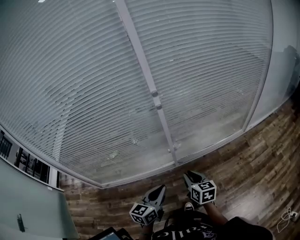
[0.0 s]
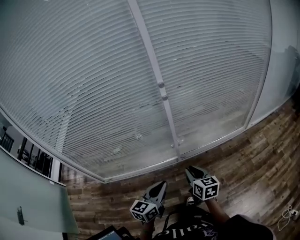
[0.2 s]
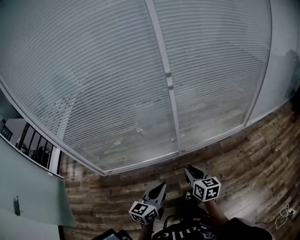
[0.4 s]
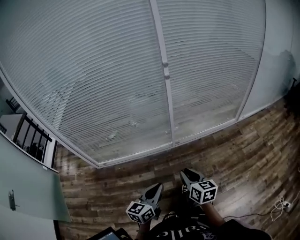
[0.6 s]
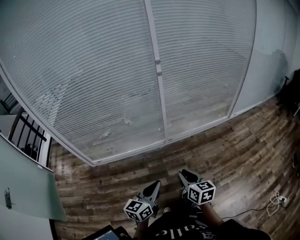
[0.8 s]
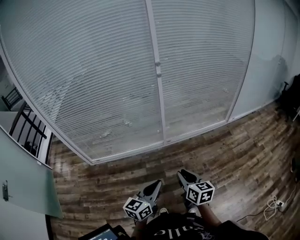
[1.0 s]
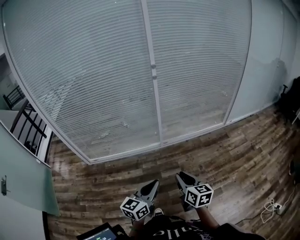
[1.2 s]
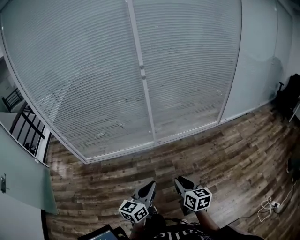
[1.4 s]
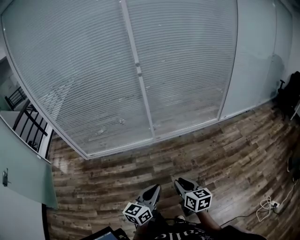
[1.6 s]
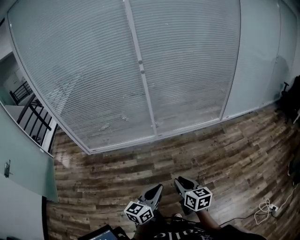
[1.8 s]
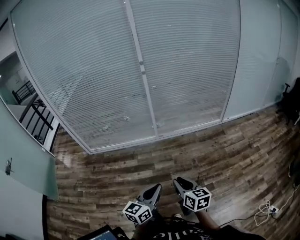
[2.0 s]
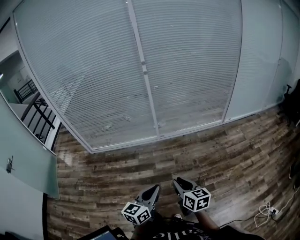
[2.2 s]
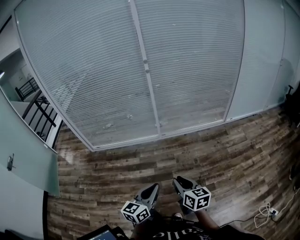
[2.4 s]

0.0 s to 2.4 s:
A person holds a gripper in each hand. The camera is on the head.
0.0 to 1.2 s: The grippers both shift backward by some 40 cm.
1.2 to 2.4 s: The two grippers go approximately 20 cm backward and to the right.

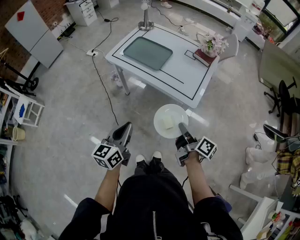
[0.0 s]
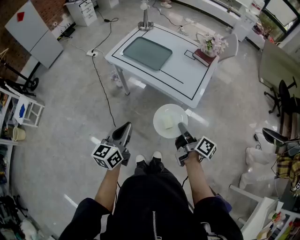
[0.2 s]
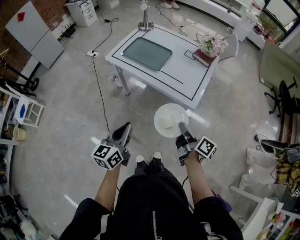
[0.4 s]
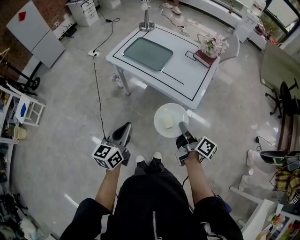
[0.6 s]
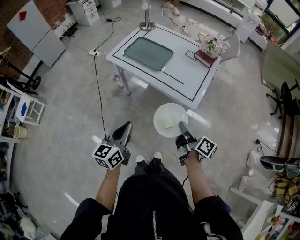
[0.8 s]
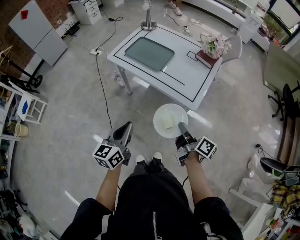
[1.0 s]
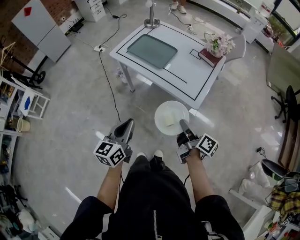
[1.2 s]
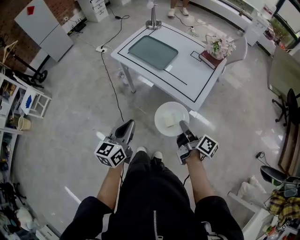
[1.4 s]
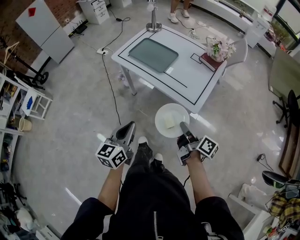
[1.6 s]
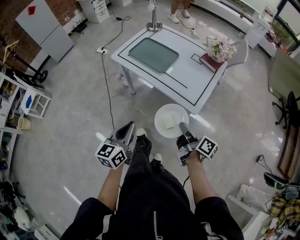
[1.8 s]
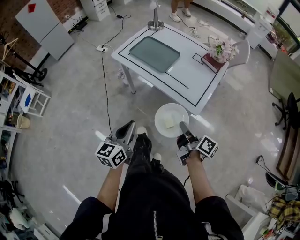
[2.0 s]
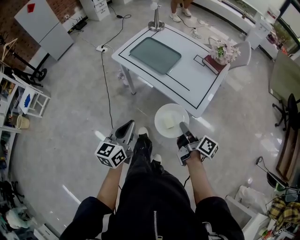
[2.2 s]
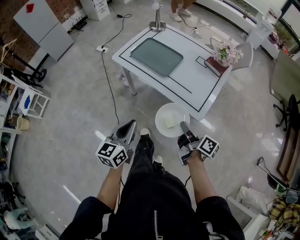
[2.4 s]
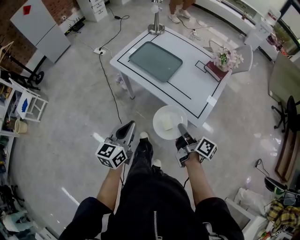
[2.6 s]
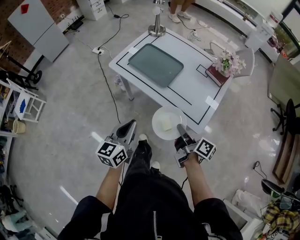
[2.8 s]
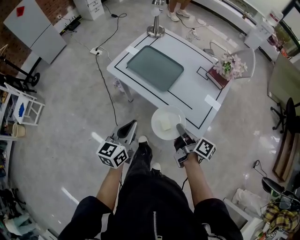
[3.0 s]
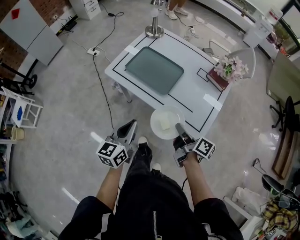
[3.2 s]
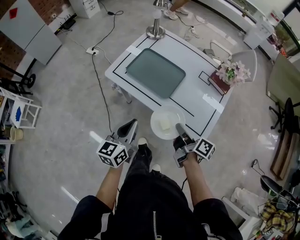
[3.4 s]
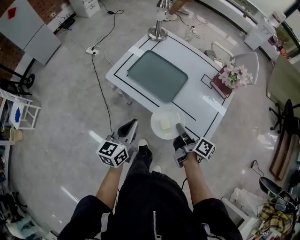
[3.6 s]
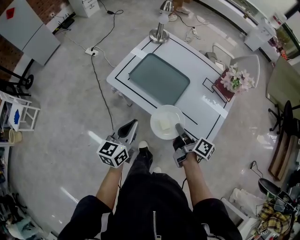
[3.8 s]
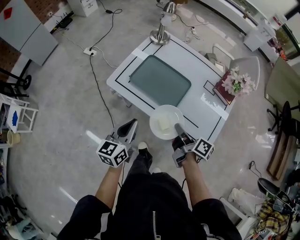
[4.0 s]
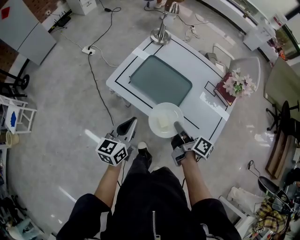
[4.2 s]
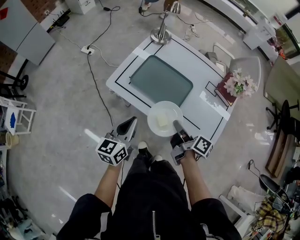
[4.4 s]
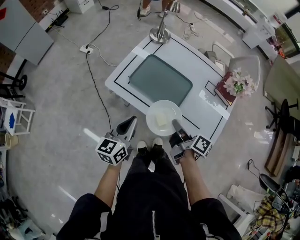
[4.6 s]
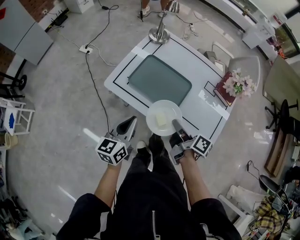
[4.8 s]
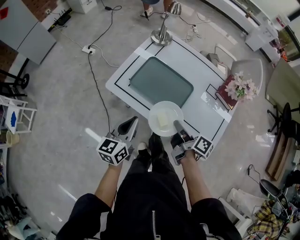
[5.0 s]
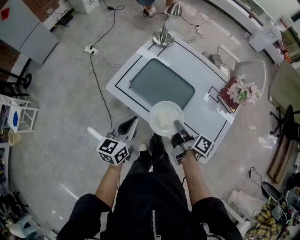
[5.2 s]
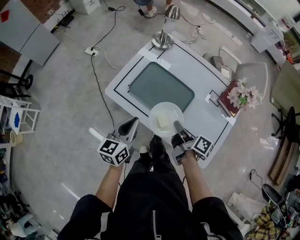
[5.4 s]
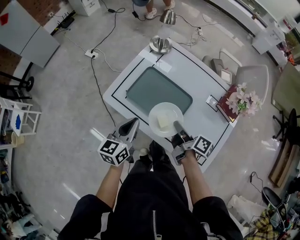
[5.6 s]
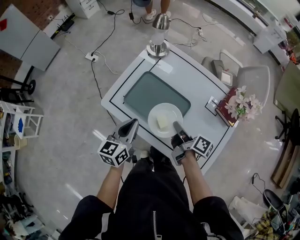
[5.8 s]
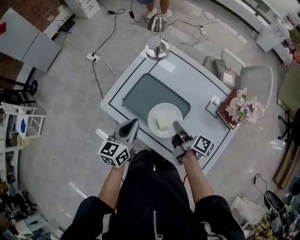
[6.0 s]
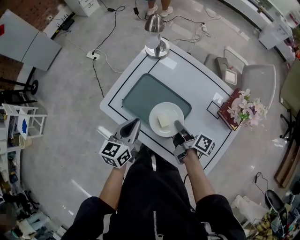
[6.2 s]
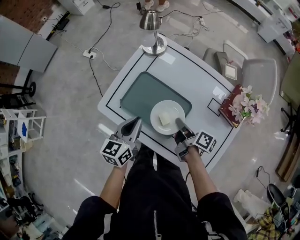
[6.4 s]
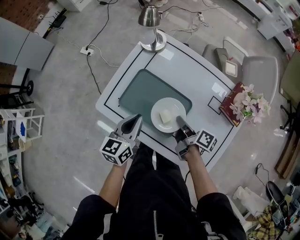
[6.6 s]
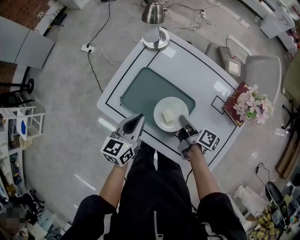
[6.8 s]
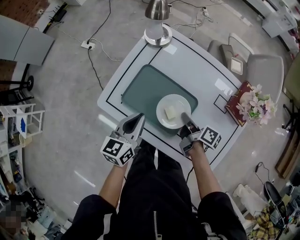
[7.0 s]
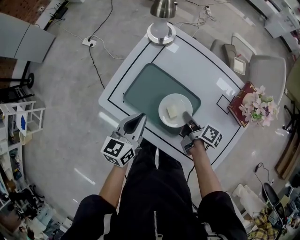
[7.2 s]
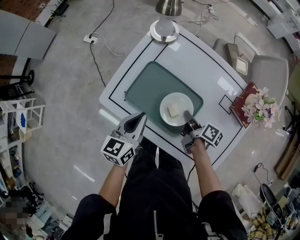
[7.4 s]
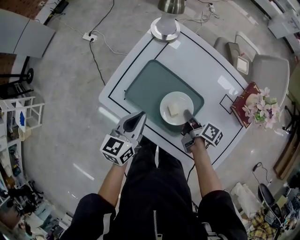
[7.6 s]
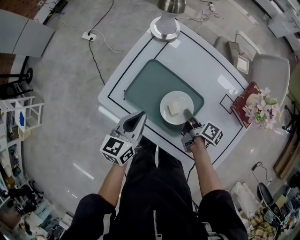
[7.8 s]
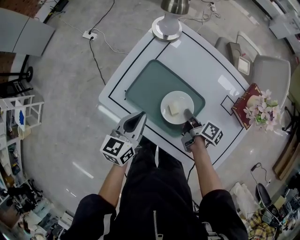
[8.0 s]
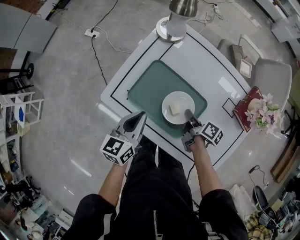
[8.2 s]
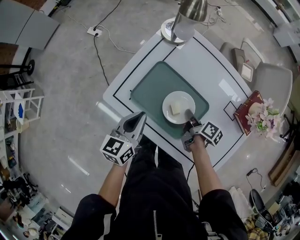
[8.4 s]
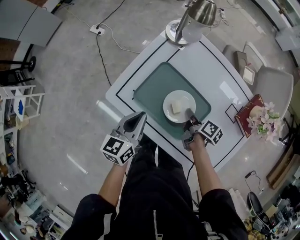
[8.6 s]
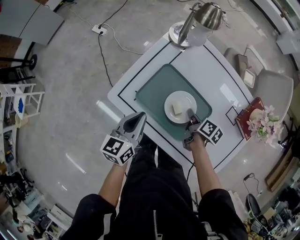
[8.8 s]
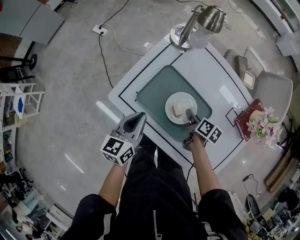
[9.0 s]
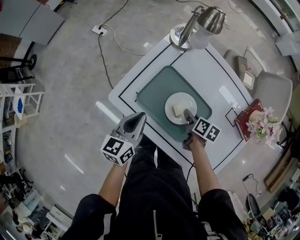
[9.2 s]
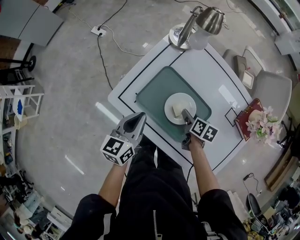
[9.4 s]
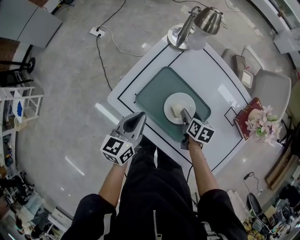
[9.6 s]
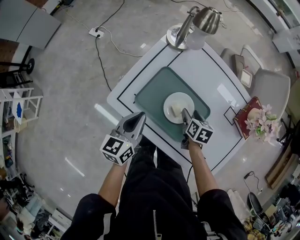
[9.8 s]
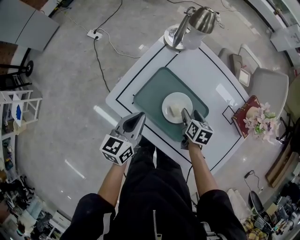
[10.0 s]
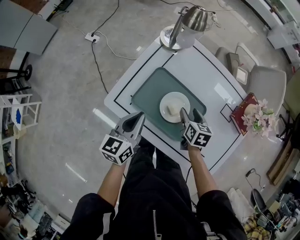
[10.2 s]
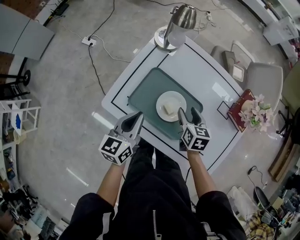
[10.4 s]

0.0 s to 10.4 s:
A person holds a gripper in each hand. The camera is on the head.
0.0 to 1.4 s: There are only small adjustments of the grippers.
1.4 to 3.0 s: Both grippers move forward, about 20 cm.
3.0 to 4.4 s: The two grippers go roughly 20 cm forward and to the left.
4.4 to 6.0 s: The left gripper goes approximately 15 cm forward and to the right. Meanwhile the right gripper moves forward, some 15 cm.
6.0 to 7.4 s: The right gripper goes approximately 10 cm downward. The left gripper shifts by roughly 5 cm.
7.4 to 9.0 s: The right gripper shifts by roughly 5 cm, changes its angle by about 20 degrees, and opens its fingers, while the left gripper travels to the left by approximately 5 cm.
9.0 to 10.4 s: The right gripper heads upward, covering about 10 cm, swivels about 40 degrees, and opens its fingers.

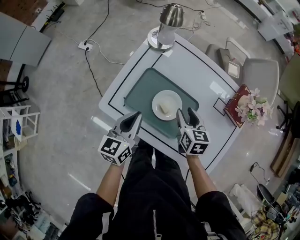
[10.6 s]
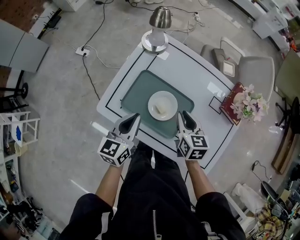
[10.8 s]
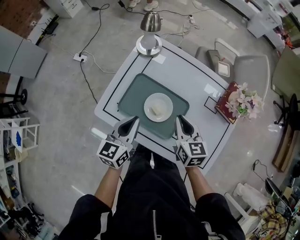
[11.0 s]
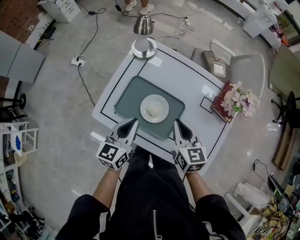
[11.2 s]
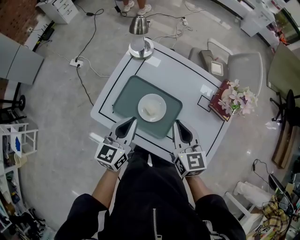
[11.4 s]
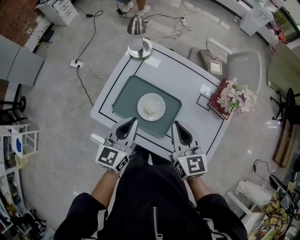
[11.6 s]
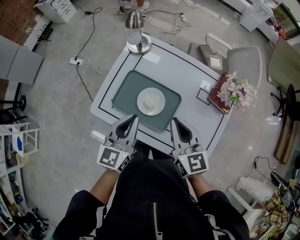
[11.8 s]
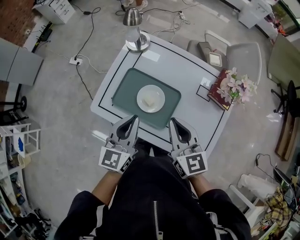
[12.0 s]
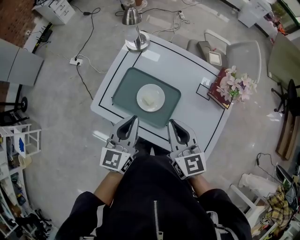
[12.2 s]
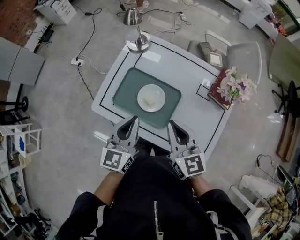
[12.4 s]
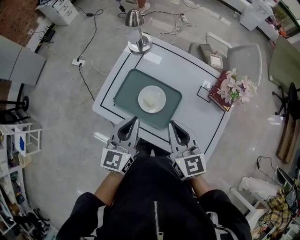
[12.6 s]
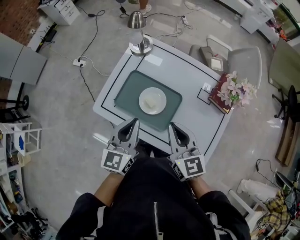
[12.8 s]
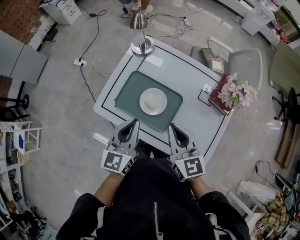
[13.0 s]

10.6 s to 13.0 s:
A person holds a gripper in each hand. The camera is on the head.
10.6 to 11.8 s: The left gripper heads upward and to the right, covering approximately 10 cm, while the right gripper shifts some 20 cm upward and backward, turns by roughly 20 degrees, and closes its fingers.
11.8 to 13.0 s: There are only small adjustments of the grippers.

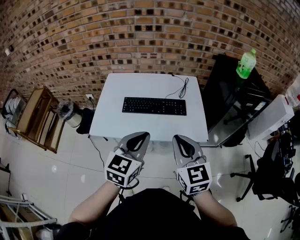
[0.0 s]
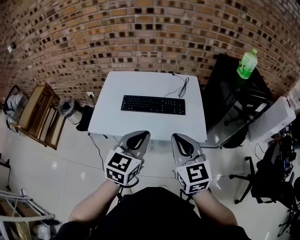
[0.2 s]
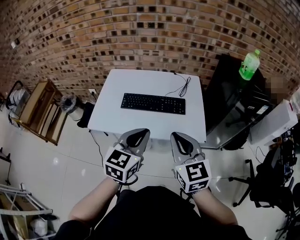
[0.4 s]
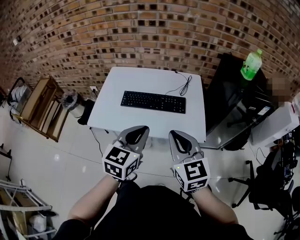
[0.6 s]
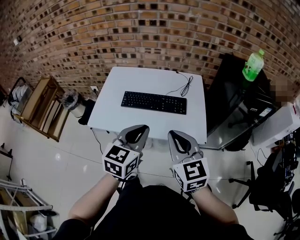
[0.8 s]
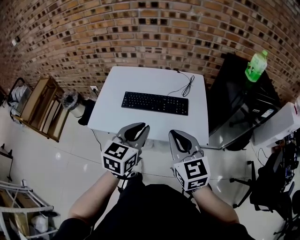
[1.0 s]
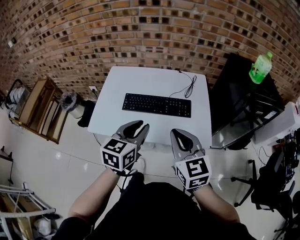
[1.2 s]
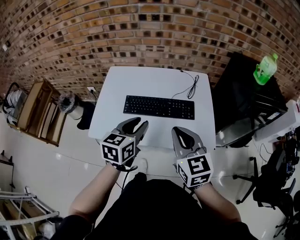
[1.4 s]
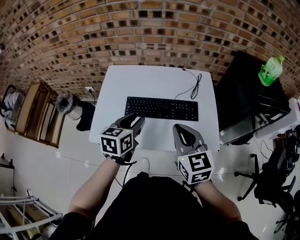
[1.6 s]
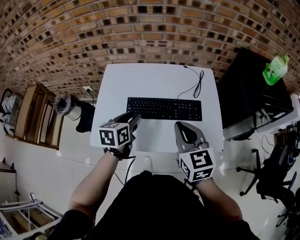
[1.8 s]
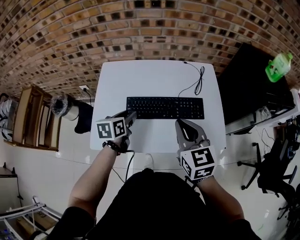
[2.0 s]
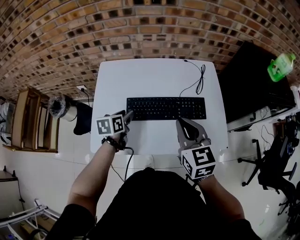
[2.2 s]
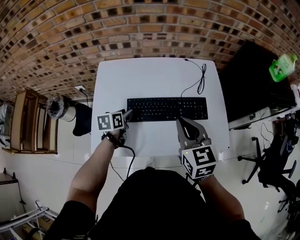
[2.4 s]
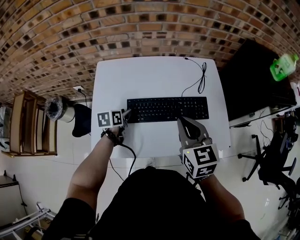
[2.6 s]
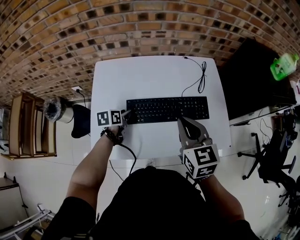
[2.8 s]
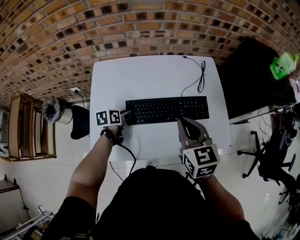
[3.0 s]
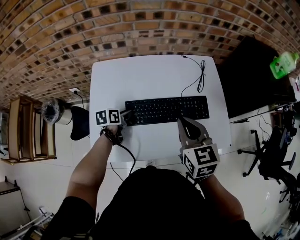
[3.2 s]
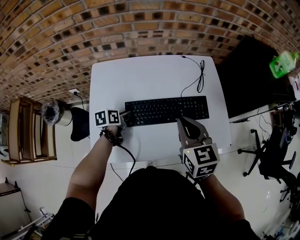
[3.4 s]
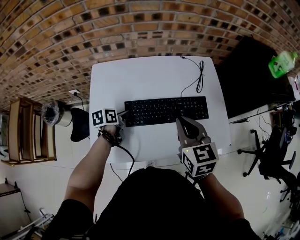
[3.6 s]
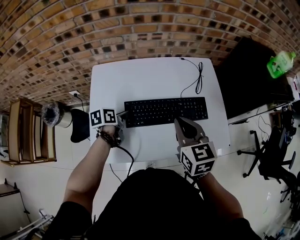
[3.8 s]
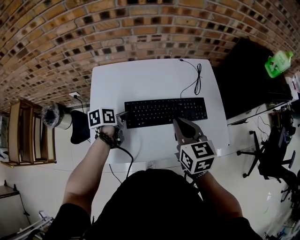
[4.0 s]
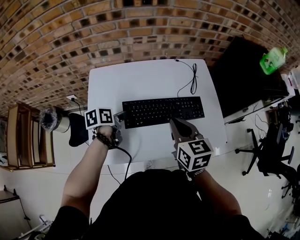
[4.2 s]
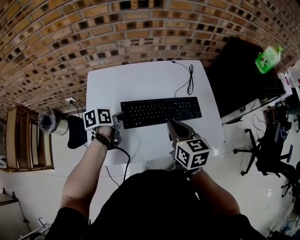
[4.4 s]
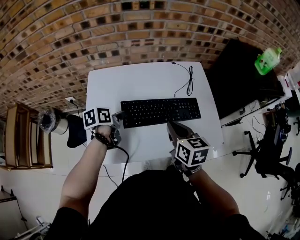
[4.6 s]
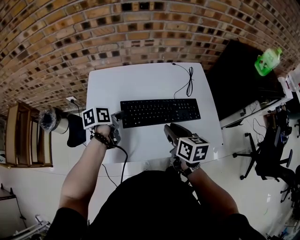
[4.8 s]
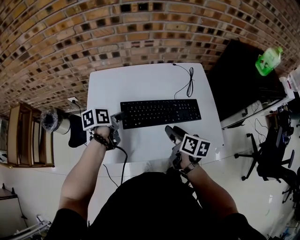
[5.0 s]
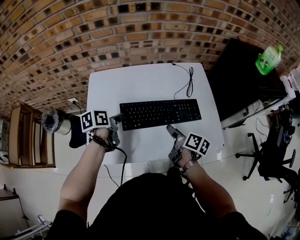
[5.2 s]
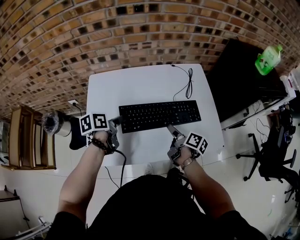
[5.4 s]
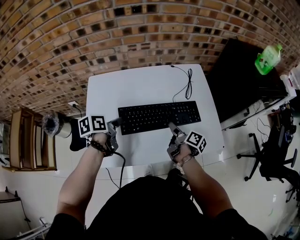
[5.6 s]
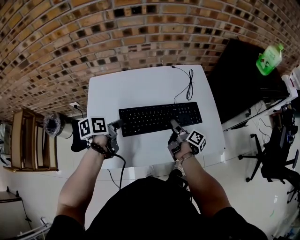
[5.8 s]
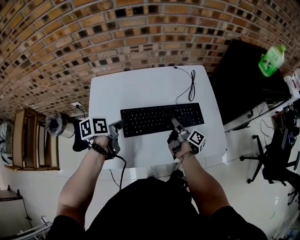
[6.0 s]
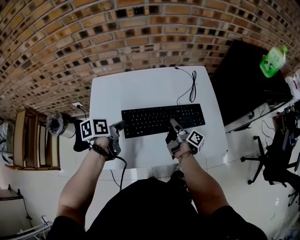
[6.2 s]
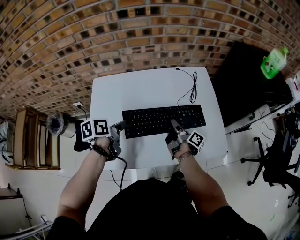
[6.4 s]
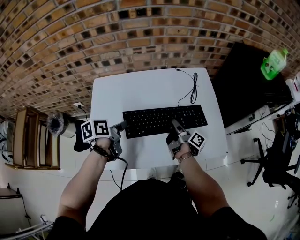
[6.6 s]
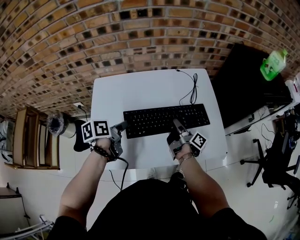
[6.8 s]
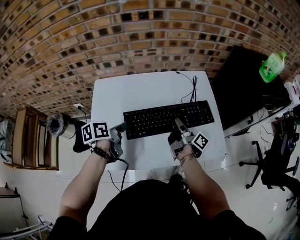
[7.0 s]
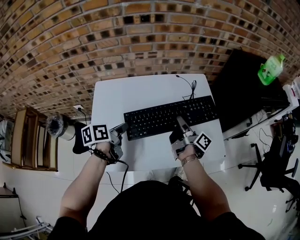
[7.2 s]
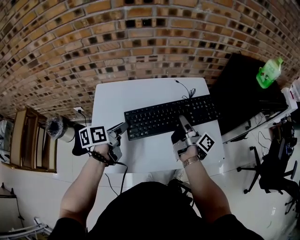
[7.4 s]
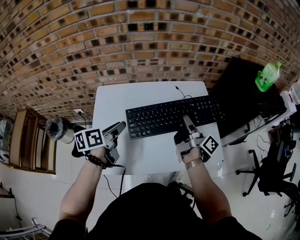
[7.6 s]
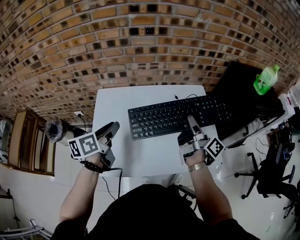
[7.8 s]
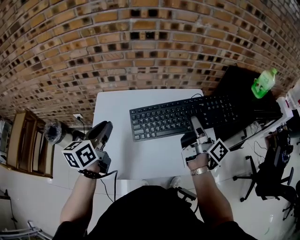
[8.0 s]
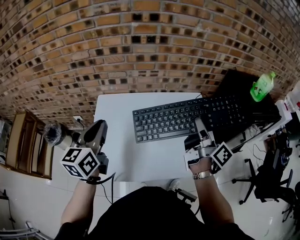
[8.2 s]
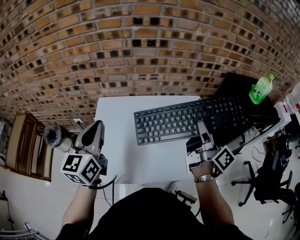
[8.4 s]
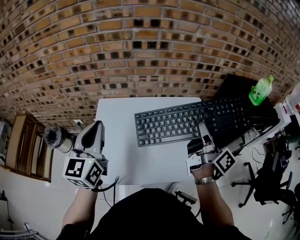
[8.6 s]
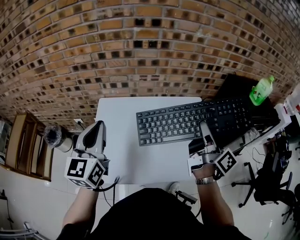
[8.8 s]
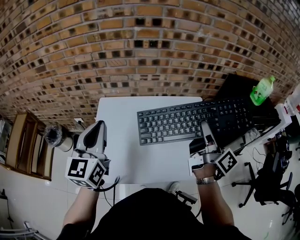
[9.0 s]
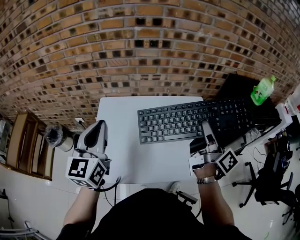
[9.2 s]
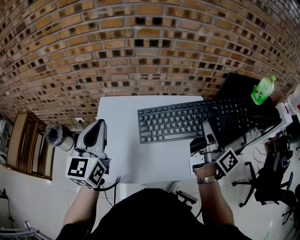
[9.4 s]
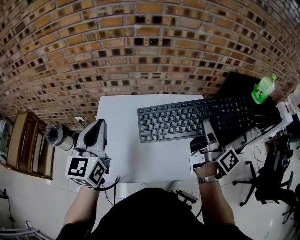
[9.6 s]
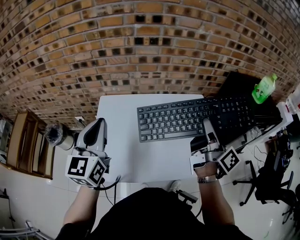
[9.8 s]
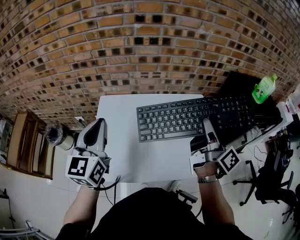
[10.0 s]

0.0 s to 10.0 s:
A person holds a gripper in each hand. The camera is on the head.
0.0 to 1.4 s: The left gripper moves forward and downward, about 15 cm, and opens its fingers. The right gripper moves forward, about 10 cm.
1.4 to 2.8 s: The right gripper moves forward, to the left and downward, some 15 cm. The left gripper goes approximately 35 cm downward, forward and to the left, and rotates approximately 40 degrees.
2.8 to 4.2 s: The left gripper moves upward, some 5 cm, and closes.
4.2 to 5.8 s: The right gripper goes approximately 20 cm downward and to the right, rotates around the line of its fingers by about 70 degrees, clockwise from behind, and opens up.
5.8 to 7.2 s: The right gripper goes approximately 10 cm upward, and closes its fingers.
7.2 to 8.6 s: The two grippers go approximately 25 cm upward. The left gripper tips its fingers upward by roughly 30 degrees; the right gripper turns by about 30 degrees.
8.6 to 10.0 s: Both grippers stay about where they are.
